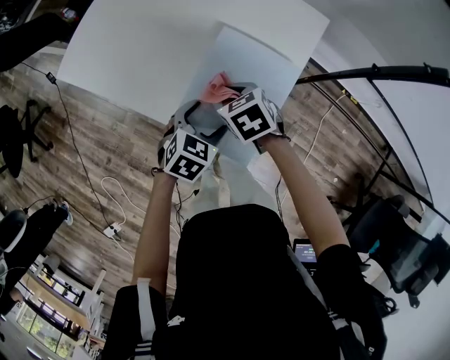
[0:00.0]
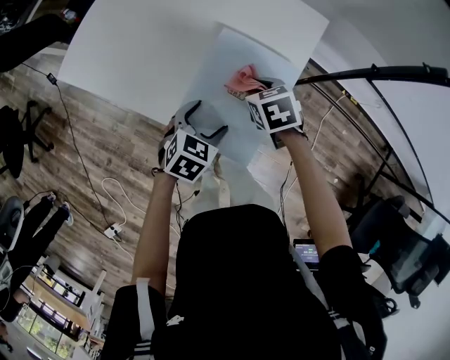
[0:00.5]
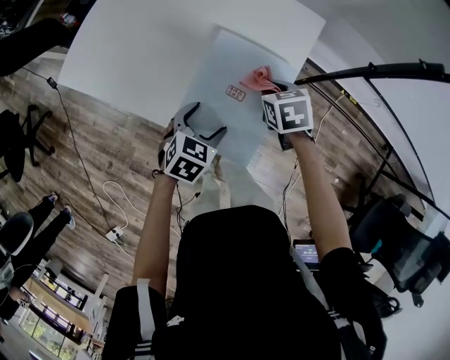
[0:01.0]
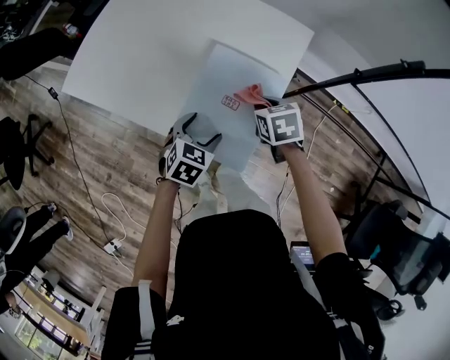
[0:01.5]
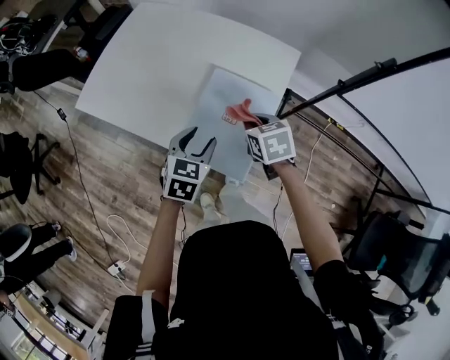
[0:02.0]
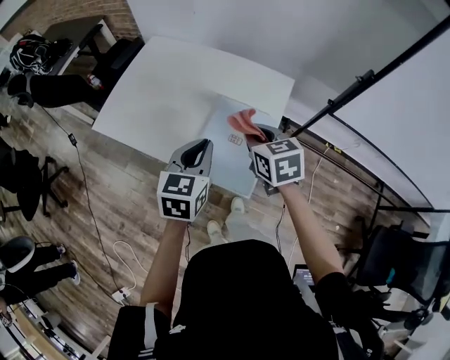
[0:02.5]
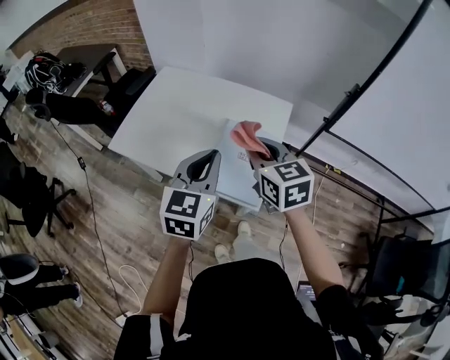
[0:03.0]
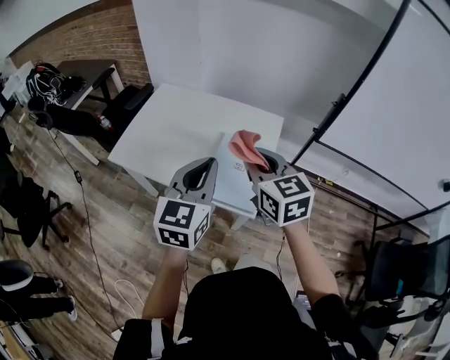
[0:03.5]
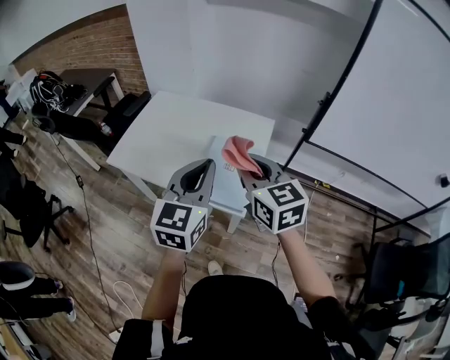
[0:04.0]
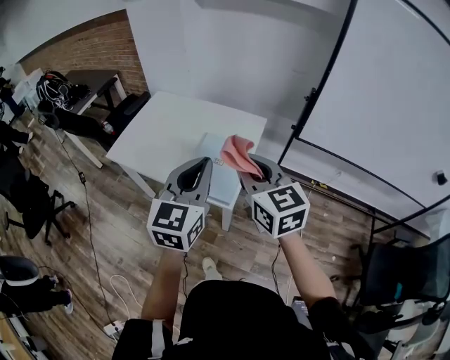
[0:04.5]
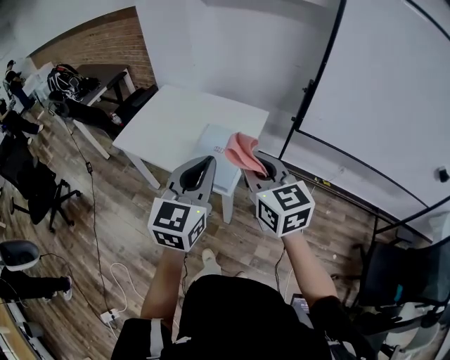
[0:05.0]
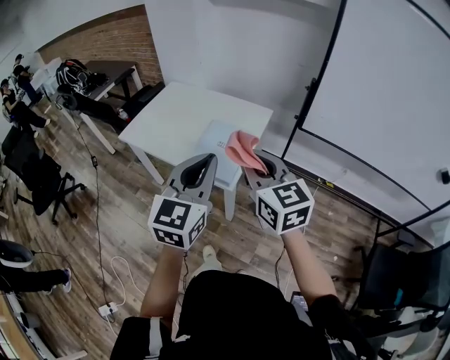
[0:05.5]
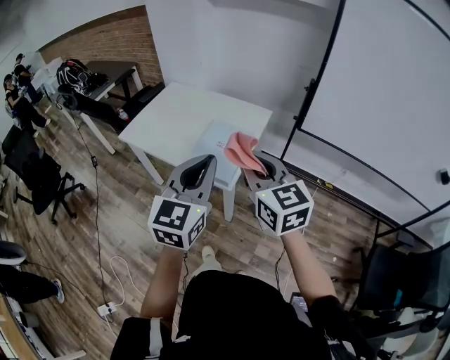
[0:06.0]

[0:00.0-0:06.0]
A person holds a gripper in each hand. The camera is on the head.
0:00.0 to 0:02.0: The left gripper goes approximately 10 cm upward, and closes up. Meanwhile the right gripper is displaced to the right and upward by approximately 10 cm.
0:02.0 to 0:04.0: The right gripper is displaced upward and backward by some 35 cm, and angles its fingers upward, by approximately 40 degrees. The left gripper goes some 30 cm upward, tilts its fingers approximately 30 degrees upward, and closes.
0:04.0 to 0:06.0: The two grippers go about 20 cm backward and to the right.

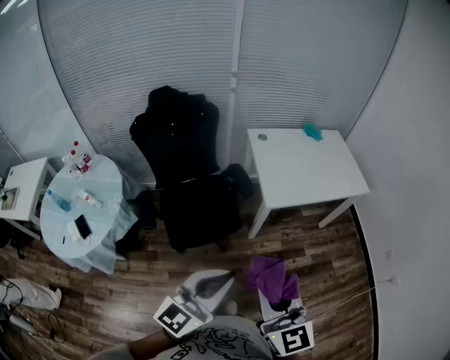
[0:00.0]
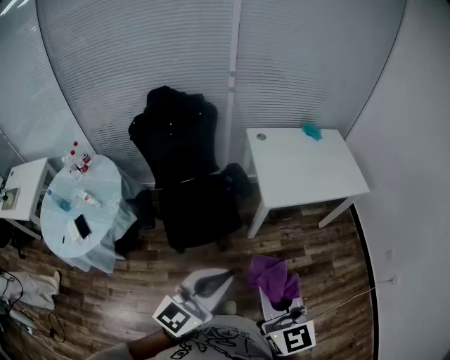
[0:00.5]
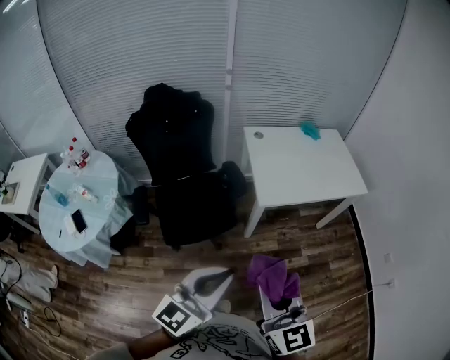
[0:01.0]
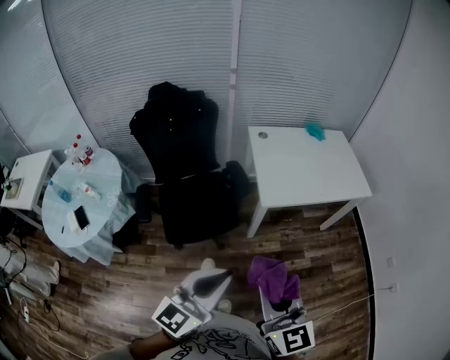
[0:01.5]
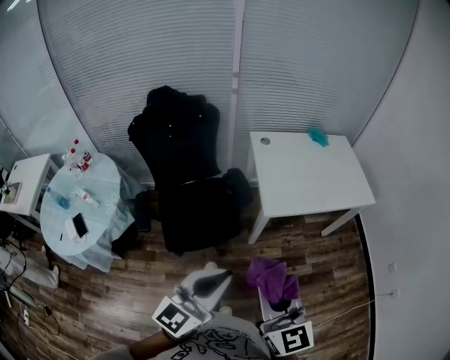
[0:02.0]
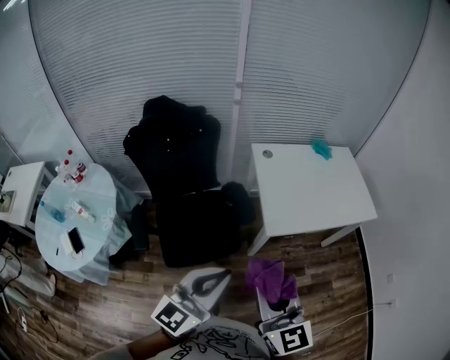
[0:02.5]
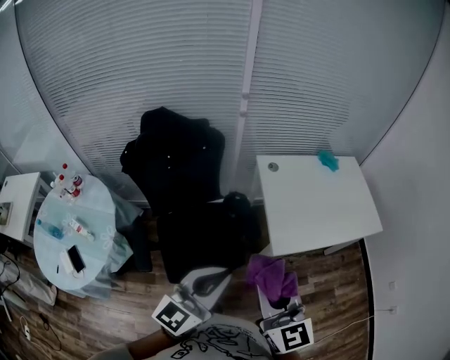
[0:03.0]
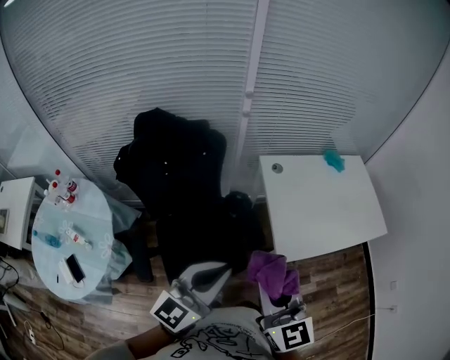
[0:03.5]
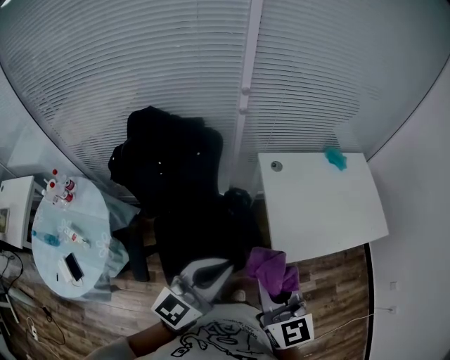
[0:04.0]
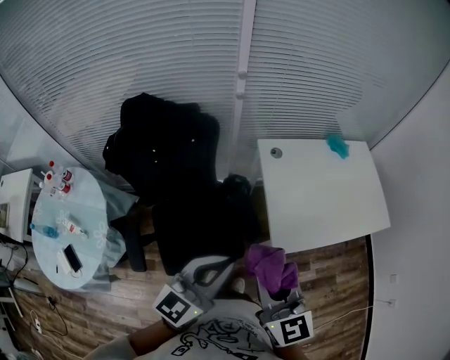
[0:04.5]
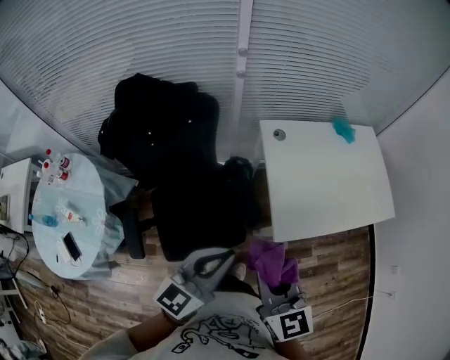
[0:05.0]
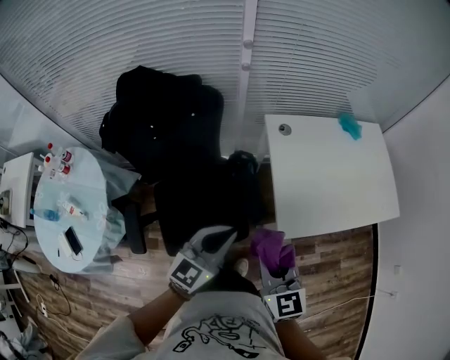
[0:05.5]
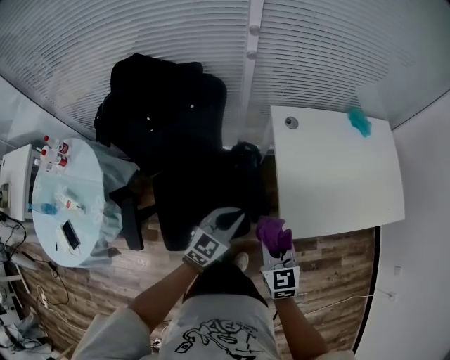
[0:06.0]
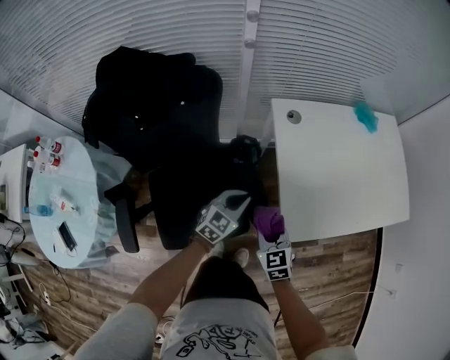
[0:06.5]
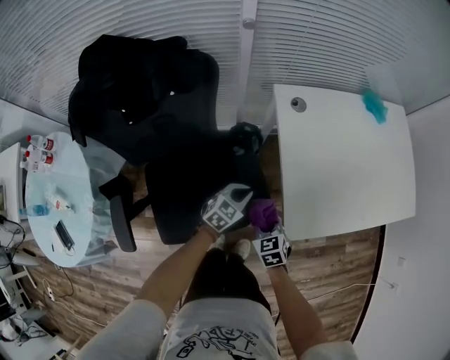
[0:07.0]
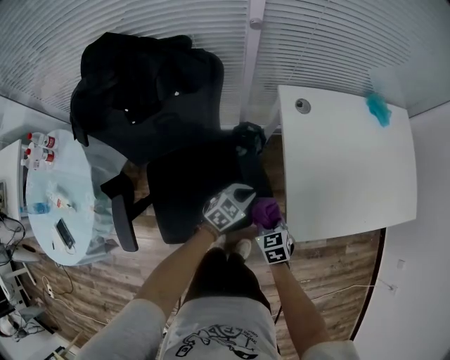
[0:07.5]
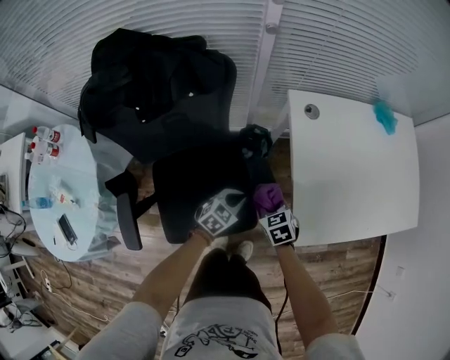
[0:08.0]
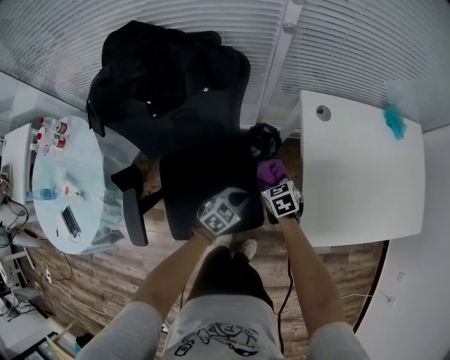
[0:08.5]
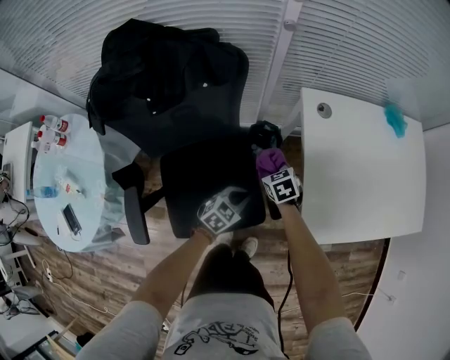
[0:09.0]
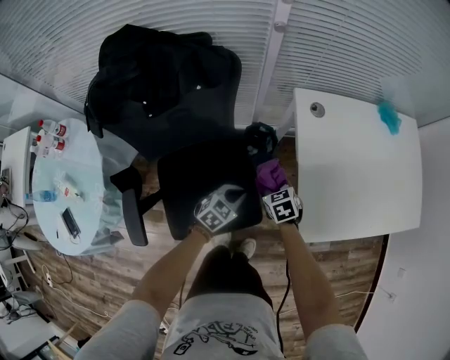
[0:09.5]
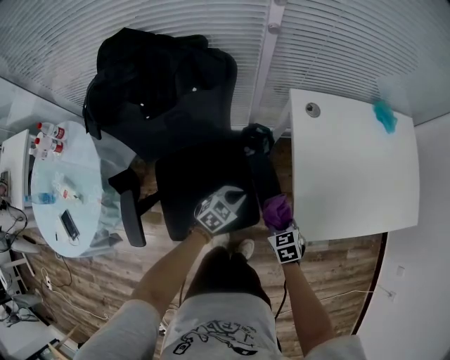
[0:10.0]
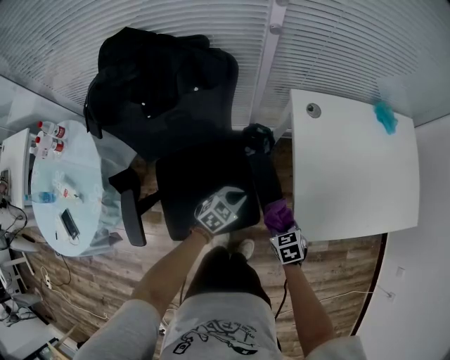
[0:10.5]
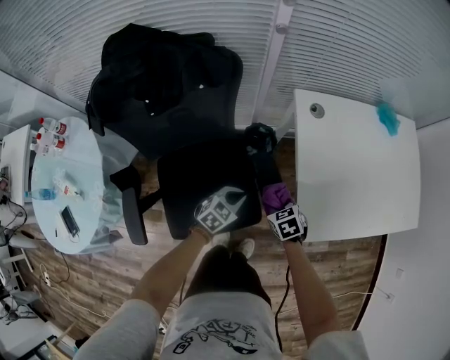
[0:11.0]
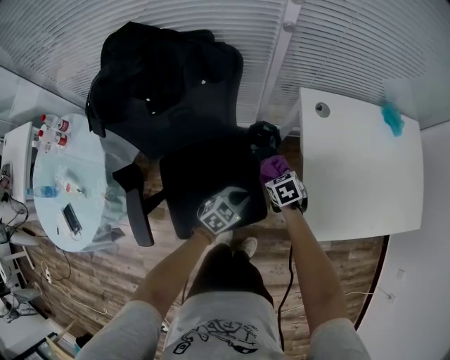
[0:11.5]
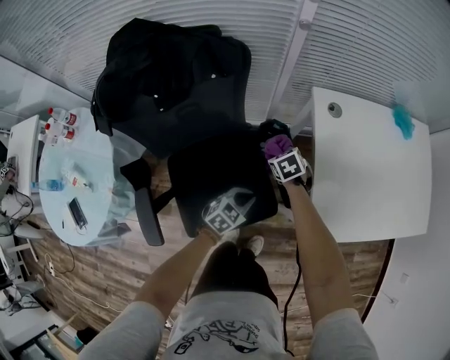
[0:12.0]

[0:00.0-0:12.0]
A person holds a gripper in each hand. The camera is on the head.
0:00.0 to 0:02.0: The two grippers go some 5 cm forward.
0:02.0 to 0:04.0: The grippers both shift forward by roughly 35 cm.
0:04.0 to 0:06.0: The left gripper moves downward and forward, about 30 cm, and swivels some 20 degrees. Meanwhile the right gripper is displaced downward by some 25 cm, and changes its angle by roughly 20 degrees.
0:06.0 to 0:08.0: The right gripper shifts approximately 25 cm downward and forward, and rotates roughly 30 degrees, while the left gripper is displaced downward by roughly 20 cm, and swivels roughly 20 degrees.
0:08.0 to 0:10.0: The right gripper goes approximately 5 cm backward.
0:10.0 to 0:12.0: The right gripper moves forward and to the left, some 20 cm.

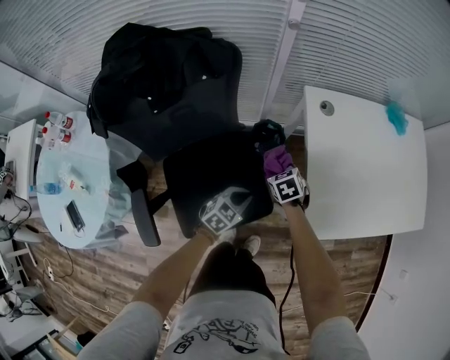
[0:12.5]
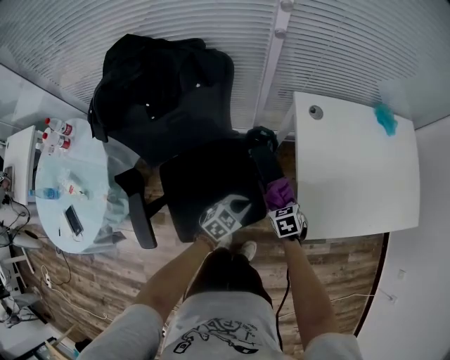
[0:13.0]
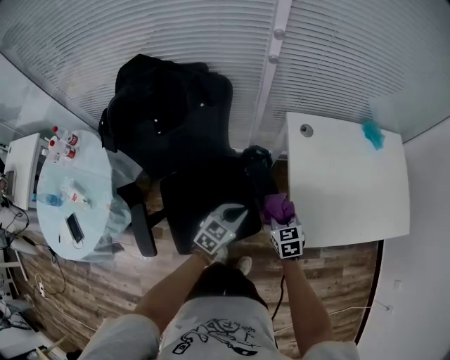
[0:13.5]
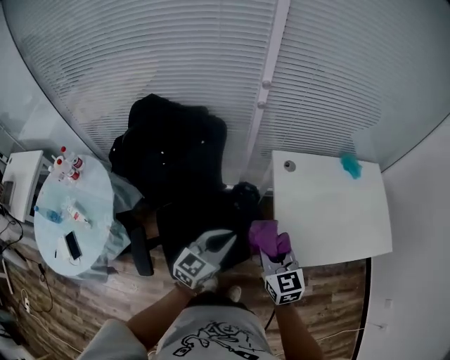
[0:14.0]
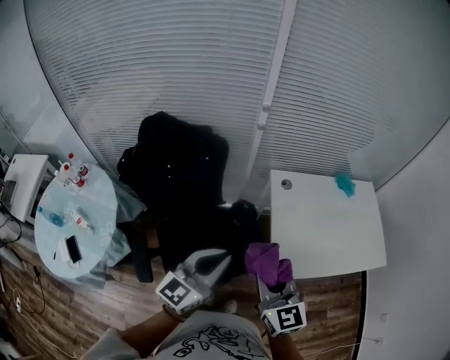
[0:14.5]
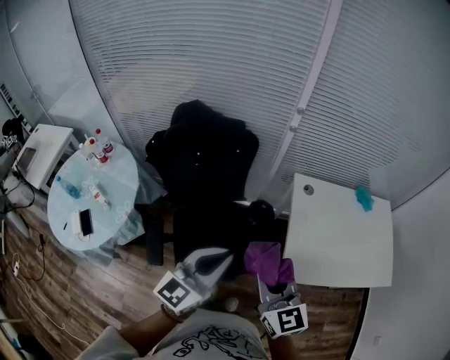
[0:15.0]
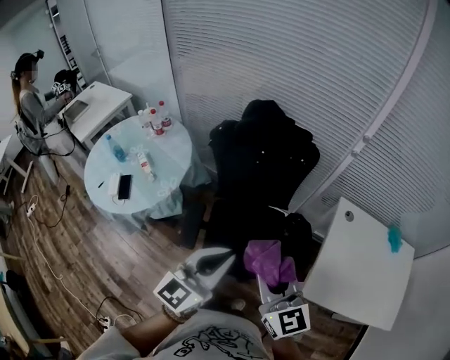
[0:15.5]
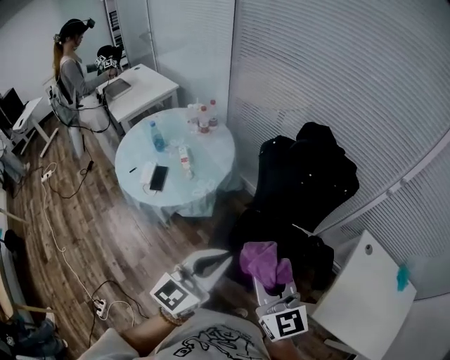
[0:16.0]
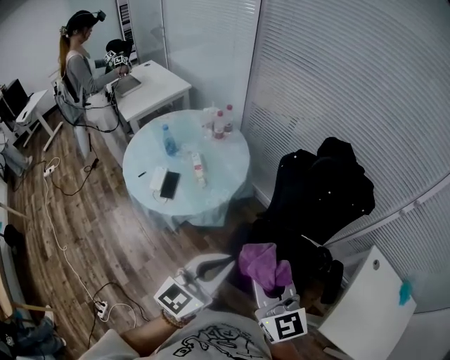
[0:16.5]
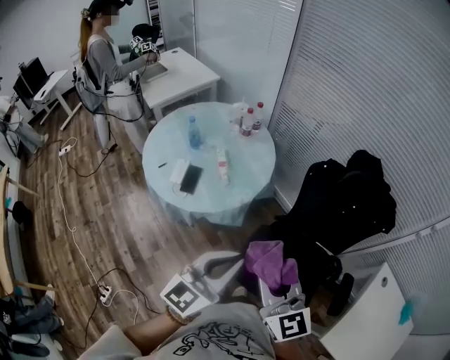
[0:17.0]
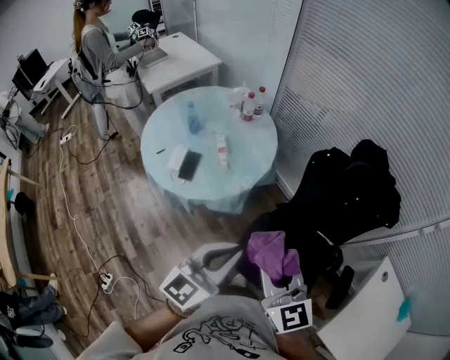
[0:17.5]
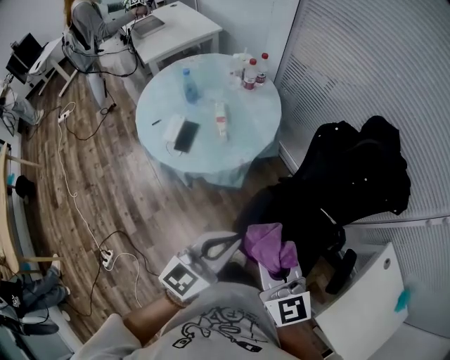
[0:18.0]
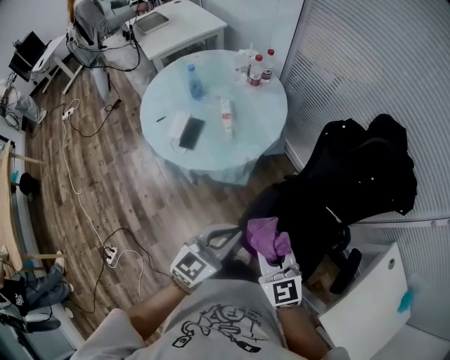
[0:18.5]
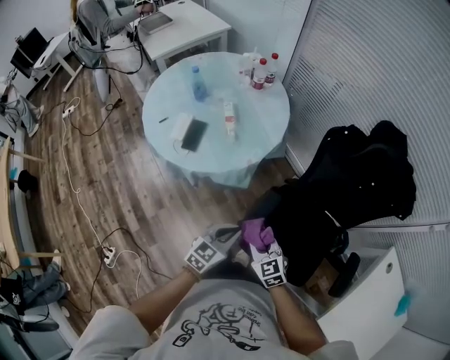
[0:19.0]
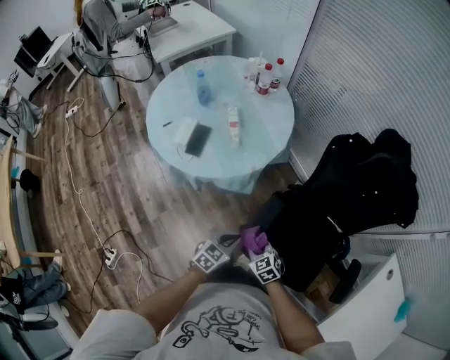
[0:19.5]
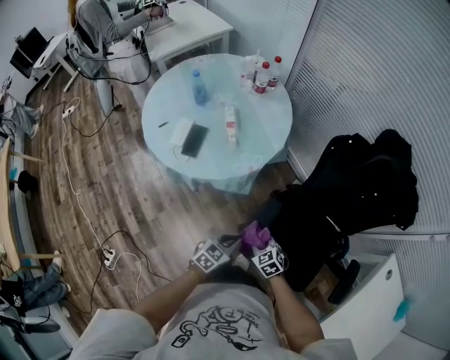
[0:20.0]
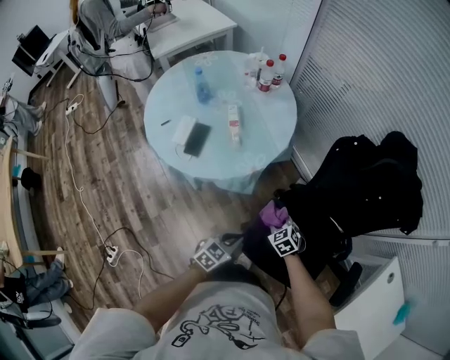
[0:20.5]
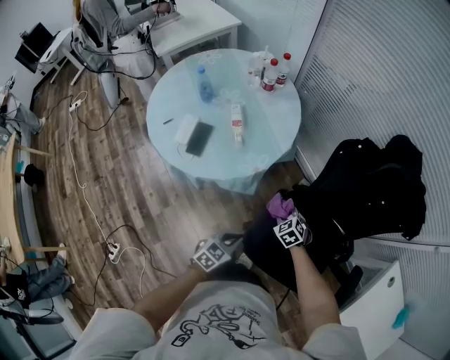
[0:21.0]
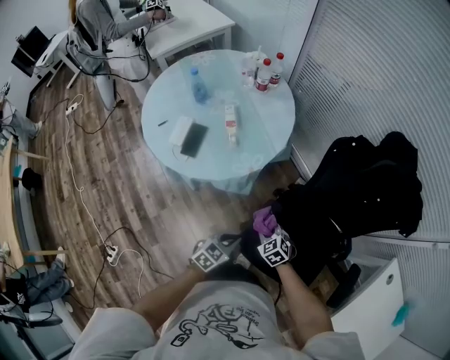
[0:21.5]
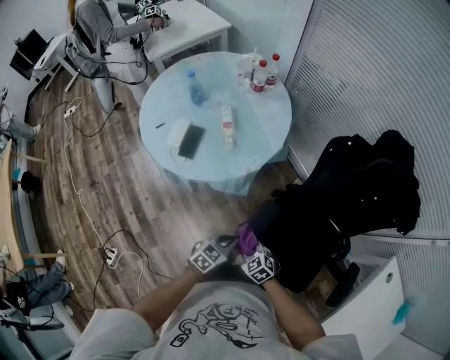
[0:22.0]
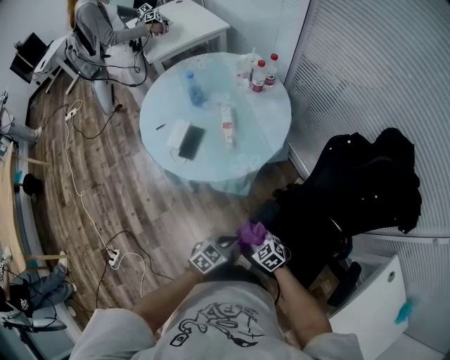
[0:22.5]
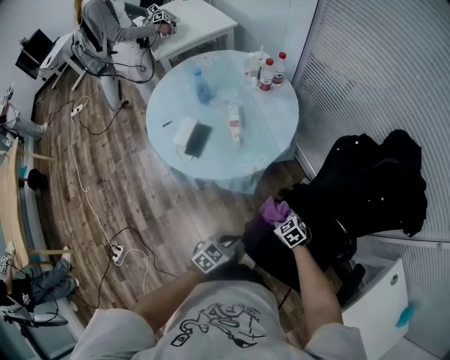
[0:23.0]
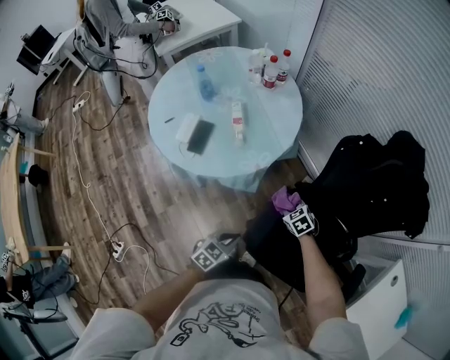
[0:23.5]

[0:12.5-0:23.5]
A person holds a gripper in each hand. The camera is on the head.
0:12.5 to 0:14.5: The right gripper heads upward and backward, covering about 50 cm, and tilts its fingers some 50 degrees upward; the left gripper shifts approximately 40 cm upward, and tilts its fingers some 40 degrees upward.
0:14.5 to 0:16.0: The left gripper shifts by approximately 35 cm, and swivels roughly 40 degrees; the right gripper ends up about 35 cm from where it was, and changes its angle by some 40 degrees.
0:16.0 to 0:18.0: The right gripper heads forward, to the left and downward, covering about 20 cm, while the left gripper travels forward, downward and to the left by roughly 20 cm.
0:18.0 to 0:20.0: The two grippers go some 35 cm downward. The right gripper points its fingers some 40 degrees further downward. The left gripper turns by about 30 degrees.
0:20.0 to 0:21.5: The right gripper heads forward, covering approximately 5 cm.
0:21.5 to 0:23.5: The right gripper heads forward, covering roughly 10 cm.
